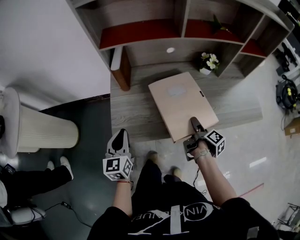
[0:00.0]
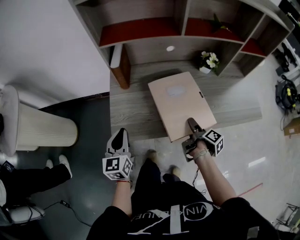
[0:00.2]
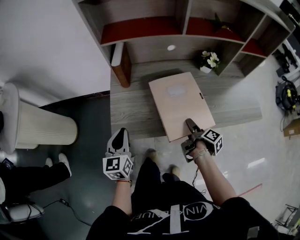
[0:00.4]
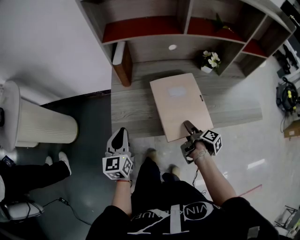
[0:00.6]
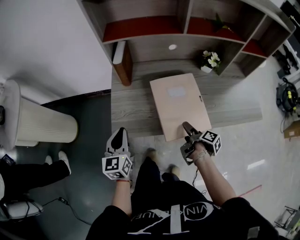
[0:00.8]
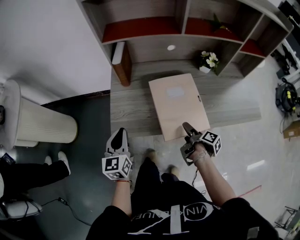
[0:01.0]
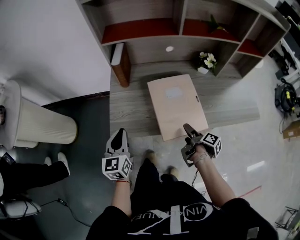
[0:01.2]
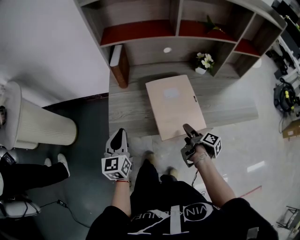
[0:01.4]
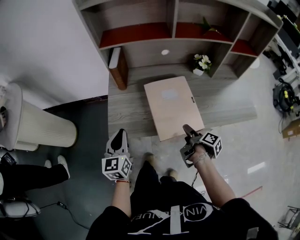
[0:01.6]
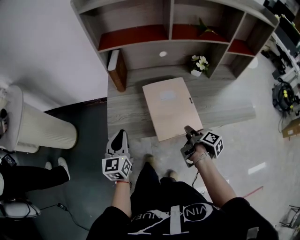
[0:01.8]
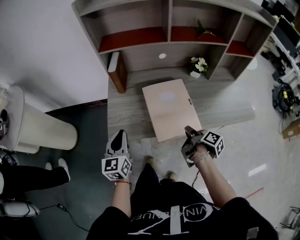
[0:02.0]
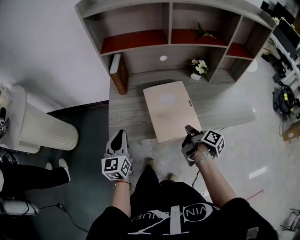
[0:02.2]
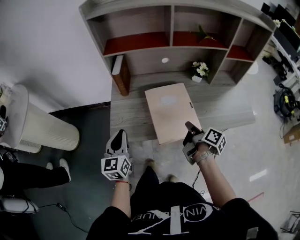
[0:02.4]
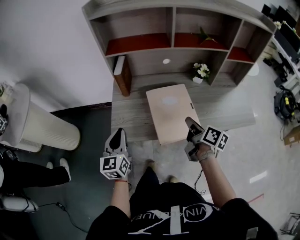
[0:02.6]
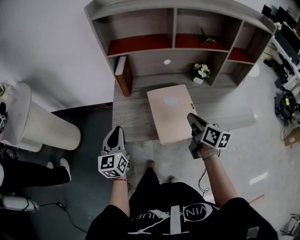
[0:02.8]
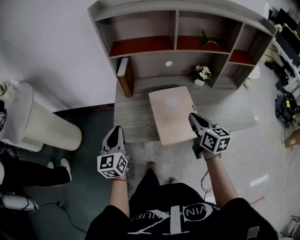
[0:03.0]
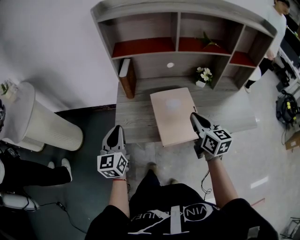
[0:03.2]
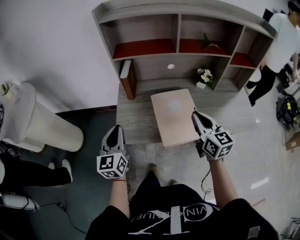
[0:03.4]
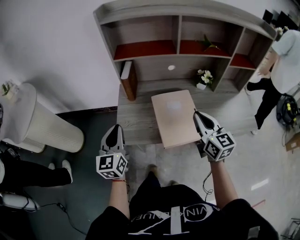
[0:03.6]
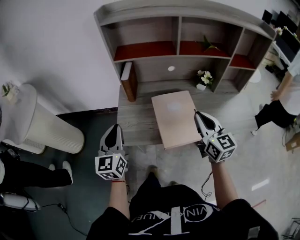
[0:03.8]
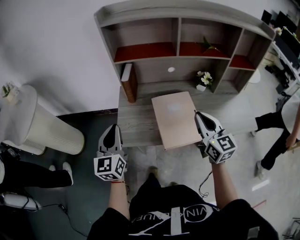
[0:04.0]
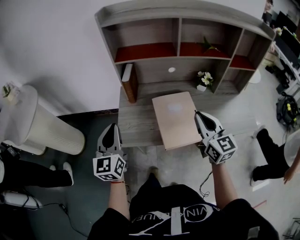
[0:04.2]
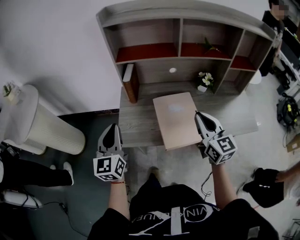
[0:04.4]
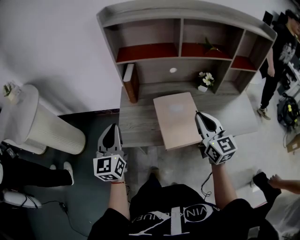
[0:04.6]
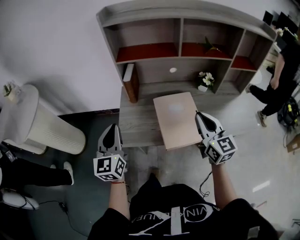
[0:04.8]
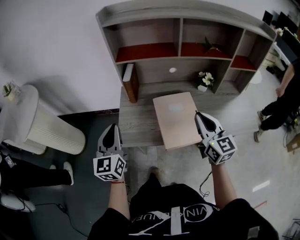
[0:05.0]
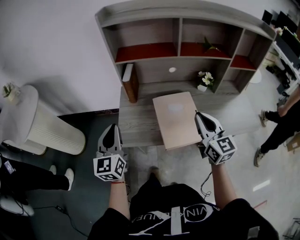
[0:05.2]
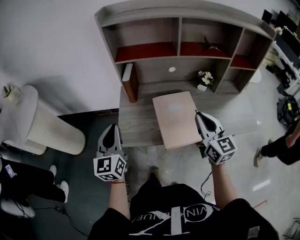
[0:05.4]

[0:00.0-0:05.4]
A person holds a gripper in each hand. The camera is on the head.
0.0 to 1.4 s: The right gripper heads backward, covering about 5 cm.
1.4 to 2.8 s: The left gripper heads upward, covering about 5 cm. Meanwhile the right gripper shifts about 15 cm upward, twists roughly 60 degrees counterclockwise, seen from behind, and closes up.
2.8 to 4.0 s: Both grippers move upward, some 10 cm. The right gripper swivels roughly 40 degrees.
4.0 to 5.4 s: Both grippers stay put.

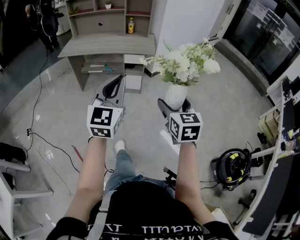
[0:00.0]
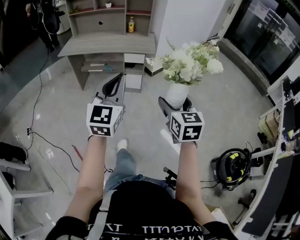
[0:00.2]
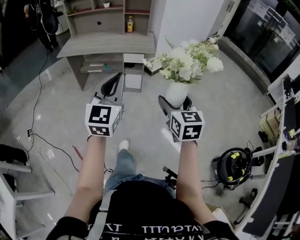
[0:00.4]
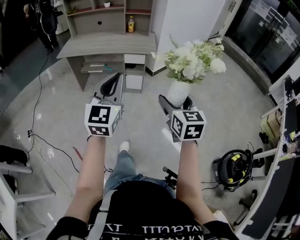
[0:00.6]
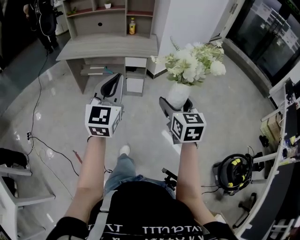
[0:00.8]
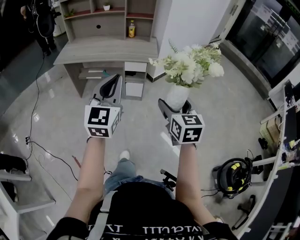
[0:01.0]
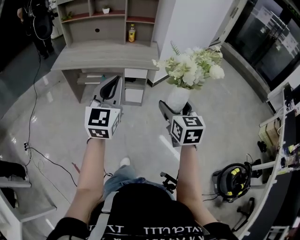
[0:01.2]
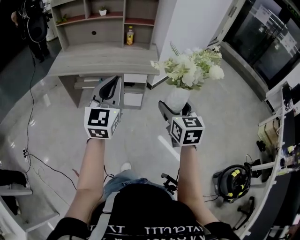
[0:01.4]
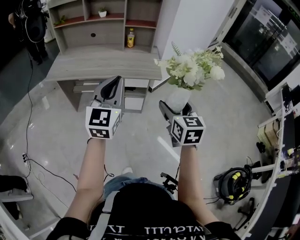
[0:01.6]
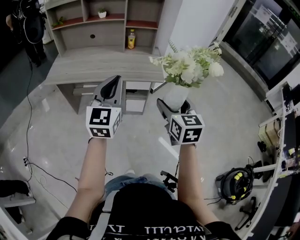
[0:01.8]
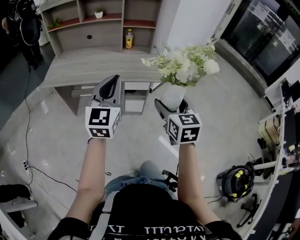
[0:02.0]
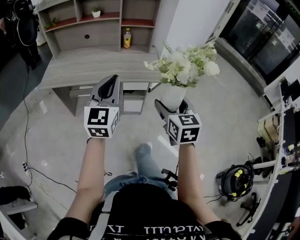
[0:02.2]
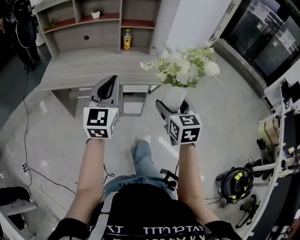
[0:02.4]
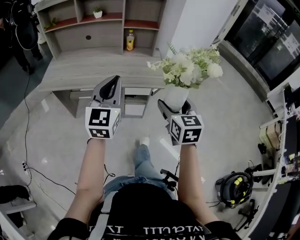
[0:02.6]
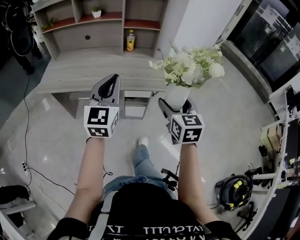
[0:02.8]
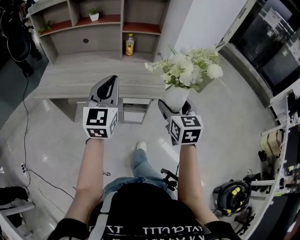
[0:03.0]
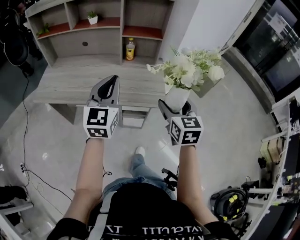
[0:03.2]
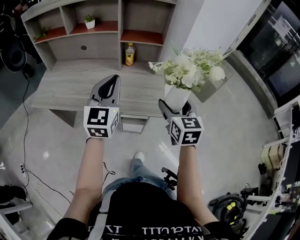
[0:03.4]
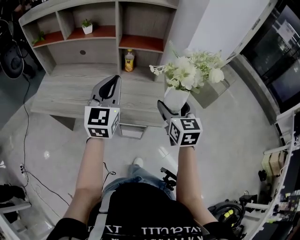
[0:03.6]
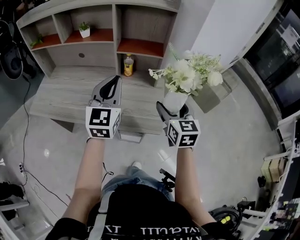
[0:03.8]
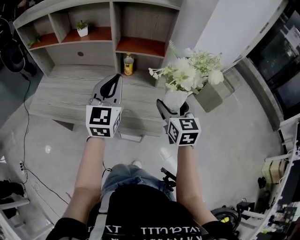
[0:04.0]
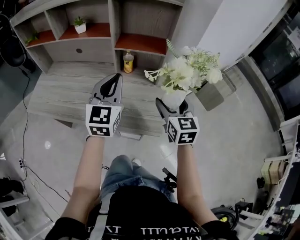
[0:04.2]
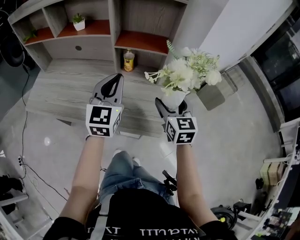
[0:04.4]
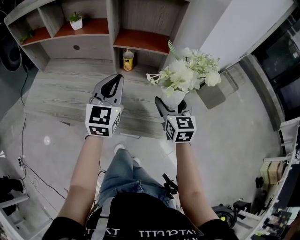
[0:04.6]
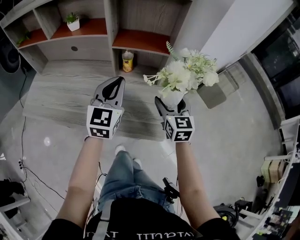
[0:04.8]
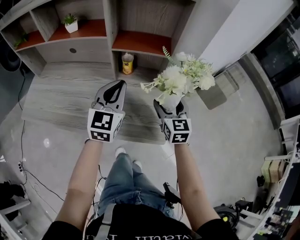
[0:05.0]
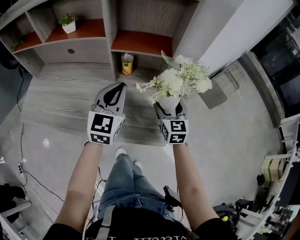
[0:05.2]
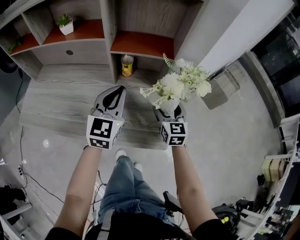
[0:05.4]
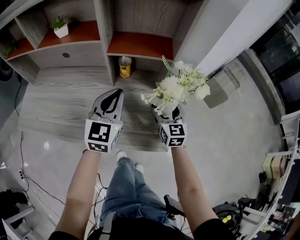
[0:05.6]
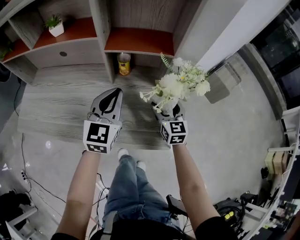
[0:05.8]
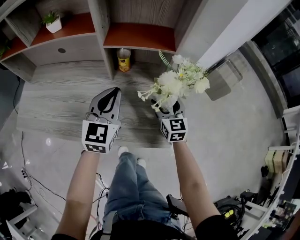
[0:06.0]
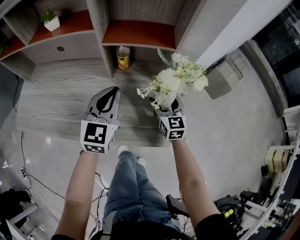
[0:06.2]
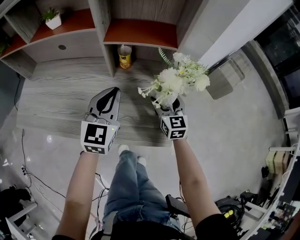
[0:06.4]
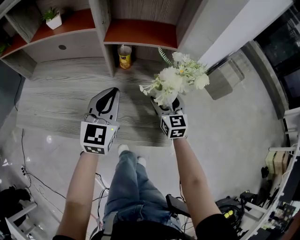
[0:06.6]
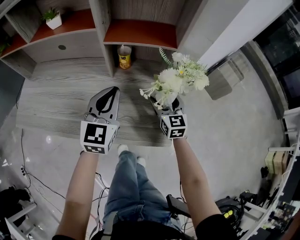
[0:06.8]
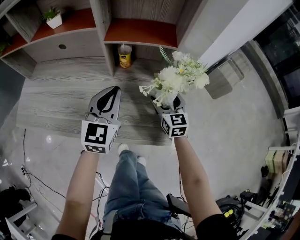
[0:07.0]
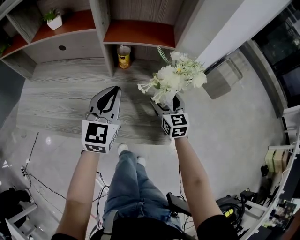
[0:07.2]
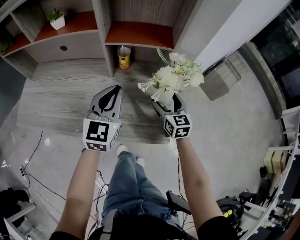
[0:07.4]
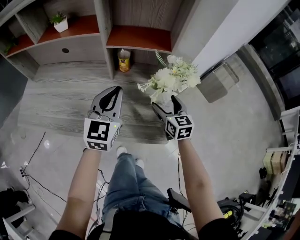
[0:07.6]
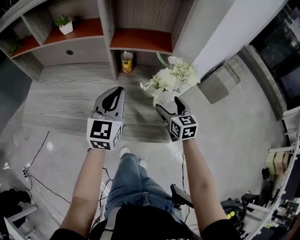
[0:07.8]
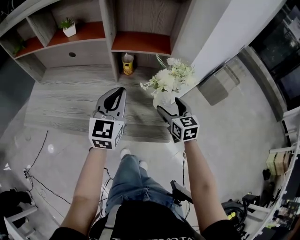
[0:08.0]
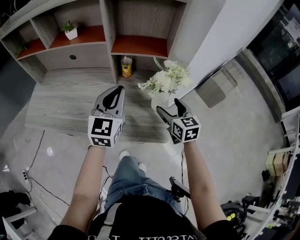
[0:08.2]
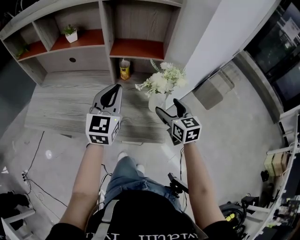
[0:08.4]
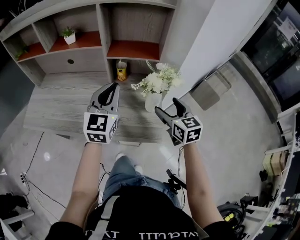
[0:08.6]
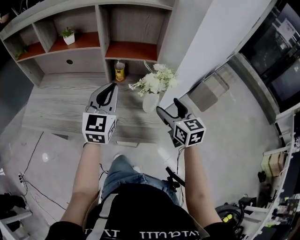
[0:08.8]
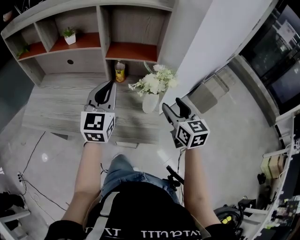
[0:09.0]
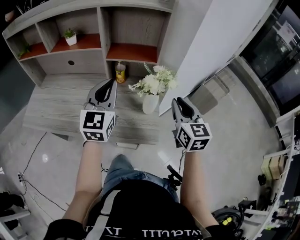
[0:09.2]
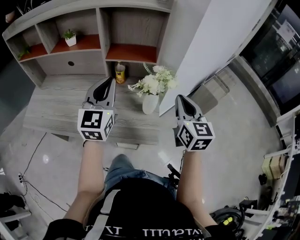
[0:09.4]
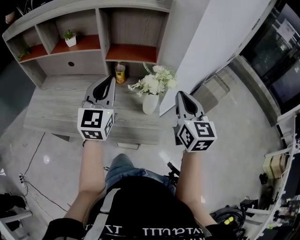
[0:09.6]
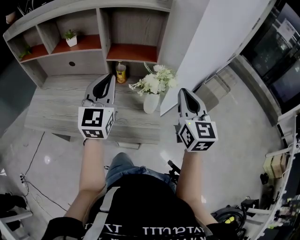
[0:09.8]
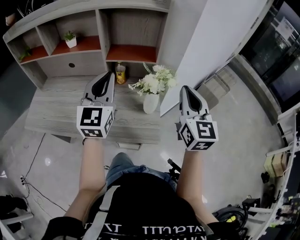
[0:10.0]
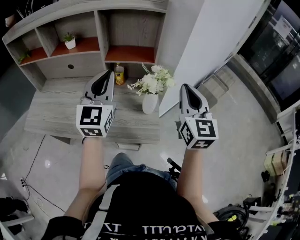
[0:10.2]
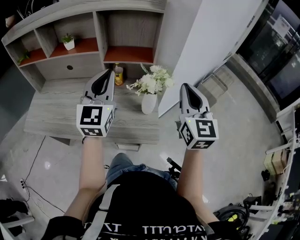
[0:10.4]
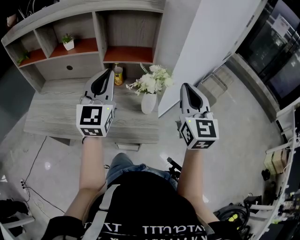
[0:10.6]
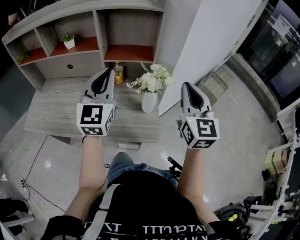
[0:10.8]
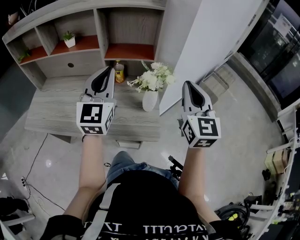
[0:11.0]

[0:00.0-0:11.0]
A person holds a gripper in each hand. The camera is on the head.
0.0 to 1.6 s: Both grippers move forward, about 30 cm.
1.6 to 3.2 s: The grippers both shift forward by roughly 30 cm.
3.2 to 4.8 s: The two grippers go approximately 25 cm forward.
4.8 to 6.2 s: The left gripper goes about 5 cm downward. Meanwhile the right gripper heads downward and forward, covering some 15 cm.
6.2 to 7.8 s: The right gripper moves approximately 5 cm.
7.8 to 9.4 s: The right gripper travels upward by approximately 20 cm, and closes up, while the left gripper moves upward, approximately 10 cm.
9.4 to 11.0 s: The right gripper goes some 5 cm upward.

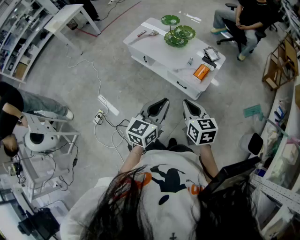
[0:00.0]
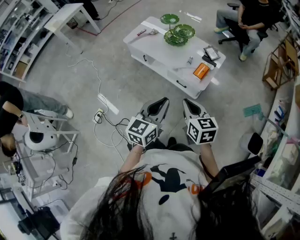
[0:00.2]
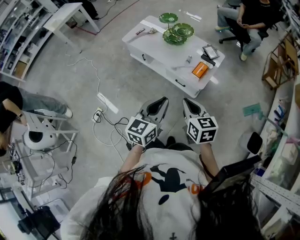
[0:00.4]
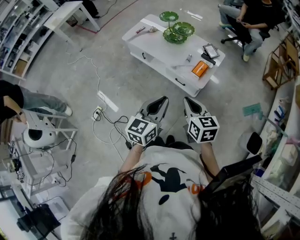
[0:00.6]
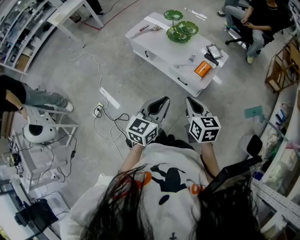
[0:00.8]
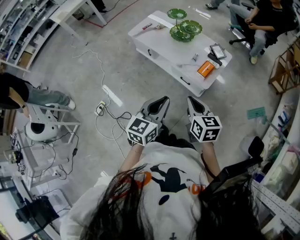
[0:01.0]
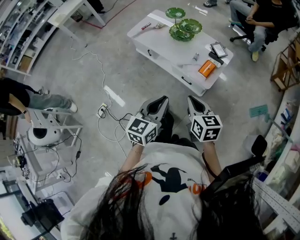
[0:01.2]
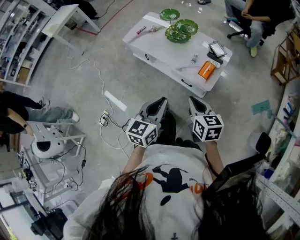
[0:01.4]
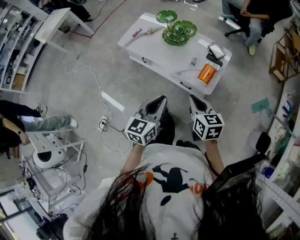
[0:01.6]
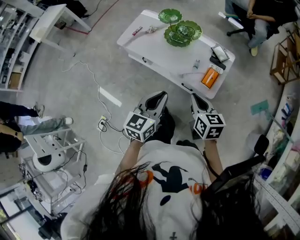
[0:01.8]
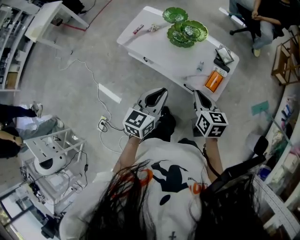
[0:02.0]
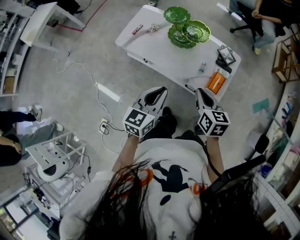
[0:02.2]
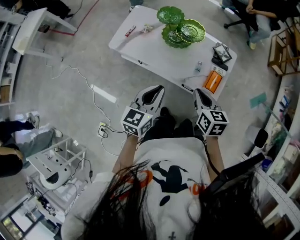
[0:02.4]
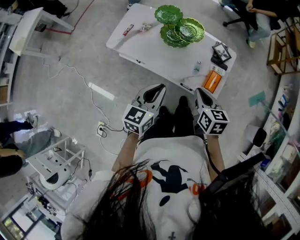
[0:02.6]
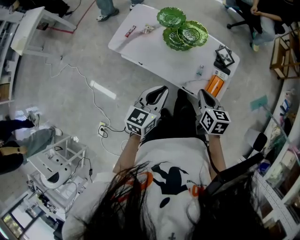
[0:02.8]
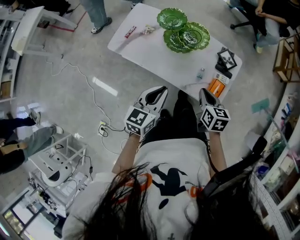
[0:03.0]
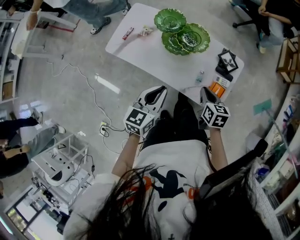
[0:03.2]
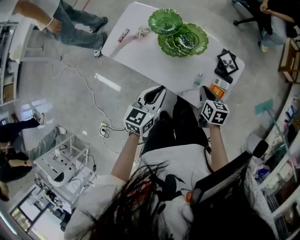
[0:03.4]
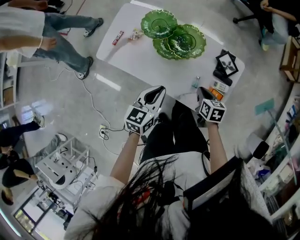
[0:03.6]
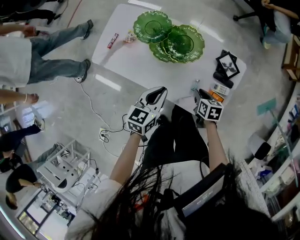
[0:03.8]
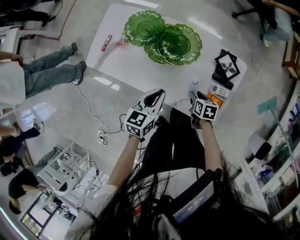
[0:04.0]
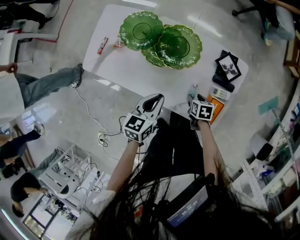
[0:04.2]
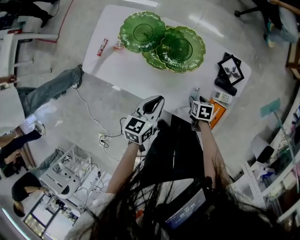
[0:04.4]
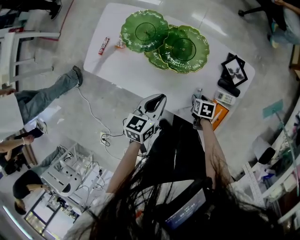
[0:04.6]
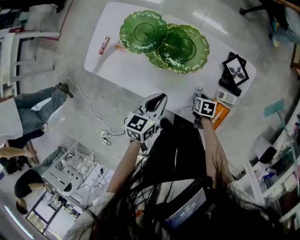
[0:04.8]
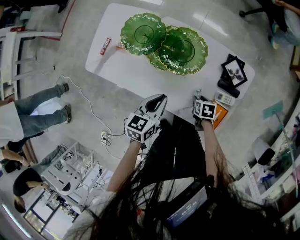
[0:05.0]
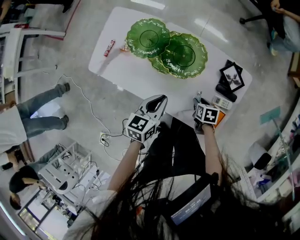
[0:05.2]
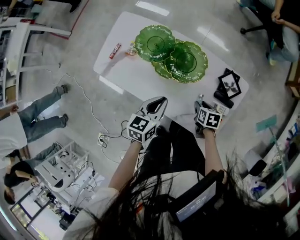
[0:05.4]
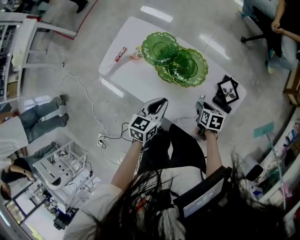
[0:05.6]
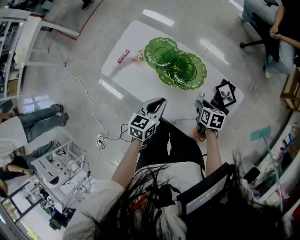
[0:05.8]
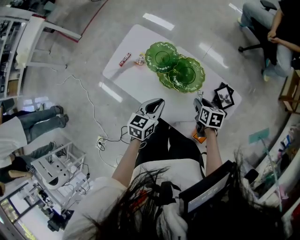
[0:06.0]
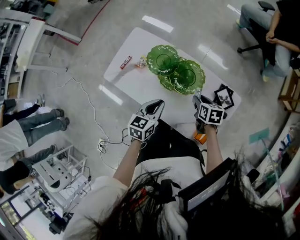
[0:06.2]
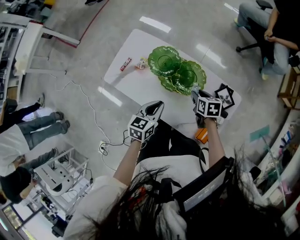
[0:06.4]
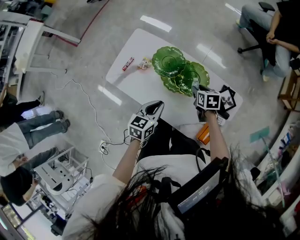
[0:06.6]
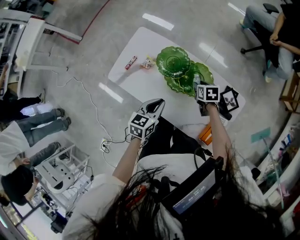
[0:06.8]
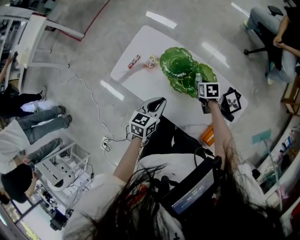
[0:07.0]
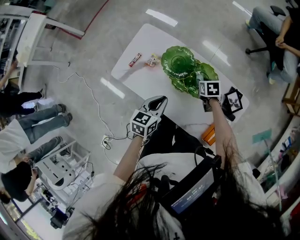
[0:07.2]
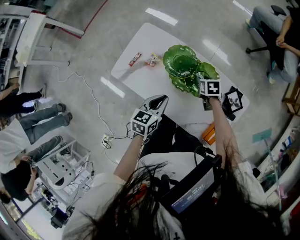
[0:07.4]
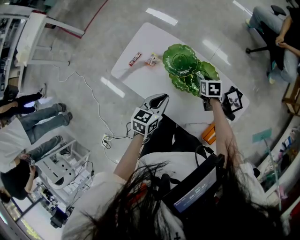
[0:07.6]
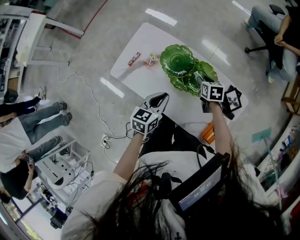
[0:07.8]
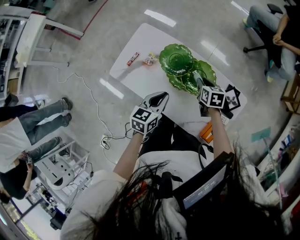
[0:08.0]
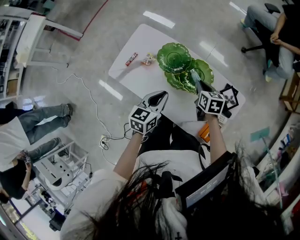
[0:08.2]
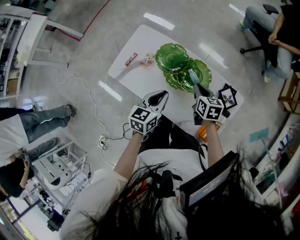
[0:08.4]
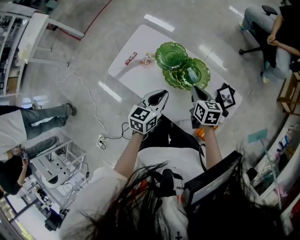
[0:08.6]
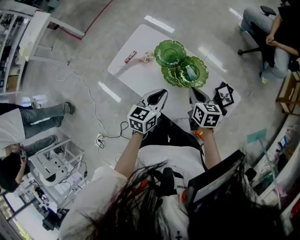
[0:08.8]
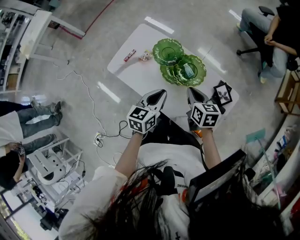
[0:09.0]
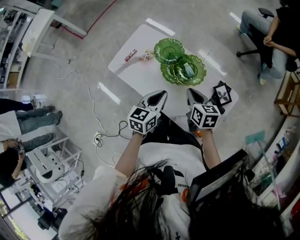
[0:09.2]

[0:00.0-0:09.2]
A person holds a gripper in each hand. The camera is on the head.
0.0 to 1.6 s: The two grippers go some 15 cm forward.
1.6 to 3.0 s: The left gripper travels forward by roughly 25 cm. Meanwhile the right gripper heads forward and downward, covering roughly 25 cm.
3.0 to 4.6 s: The left gripper moves downward and forward, about 25 cm. Meanwhile the right gripper travels downward by some 35 cm, angles its fingers downward, by about 30 degrees, and opens up.
4.6 to 6.2 s: The right gripper goes approximately 25 cm upward and forward, and rotates some 20 degrees. Meanwhile the left gripper heads upward, covering some 10 cm.
6.2 to 7.6 s: The left gripper is displaced to the left by some 5 cm. The right gripper shifts about 15 cm forward and to the left.
7.6 to 9.2 s: The right gripper travels upward and backward by about 20 cm, turns by roughly 30 degrees, and closes. The left gripper moves upward, to the right and backward, roughly 10 cm.
